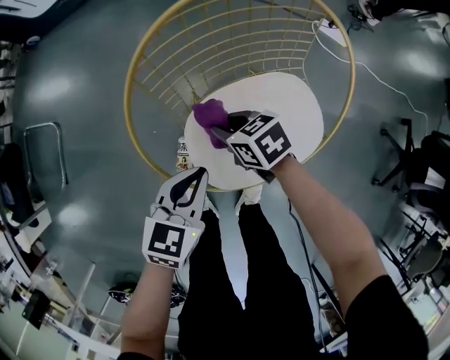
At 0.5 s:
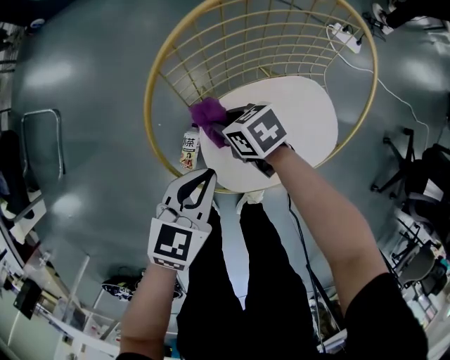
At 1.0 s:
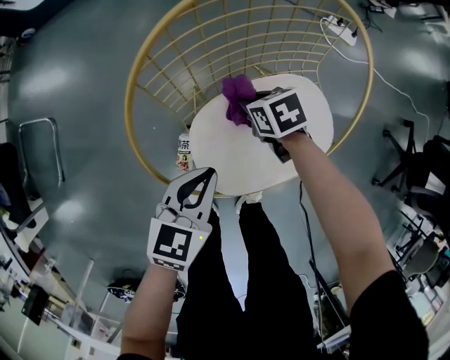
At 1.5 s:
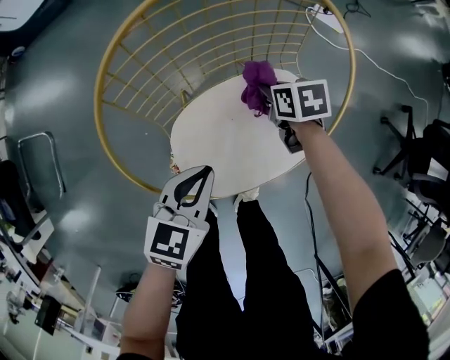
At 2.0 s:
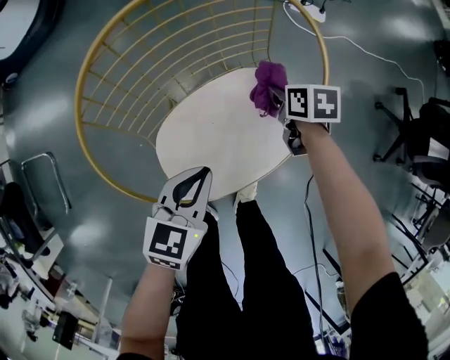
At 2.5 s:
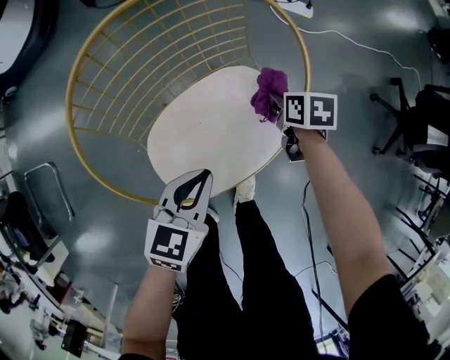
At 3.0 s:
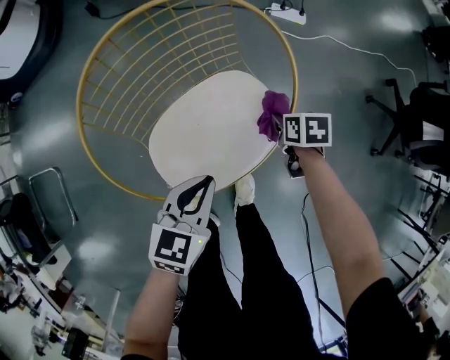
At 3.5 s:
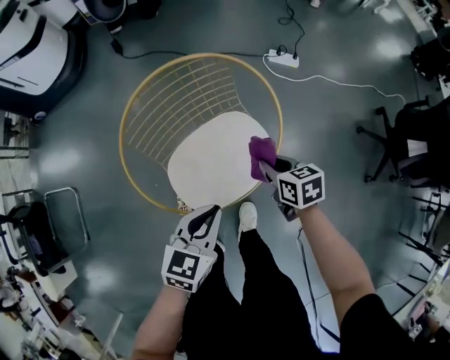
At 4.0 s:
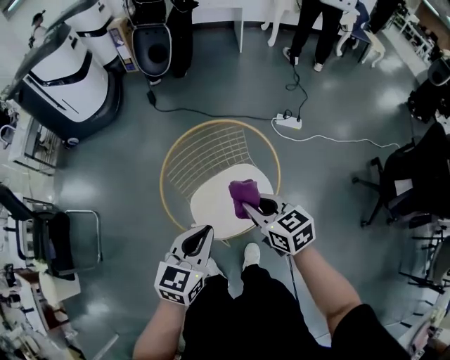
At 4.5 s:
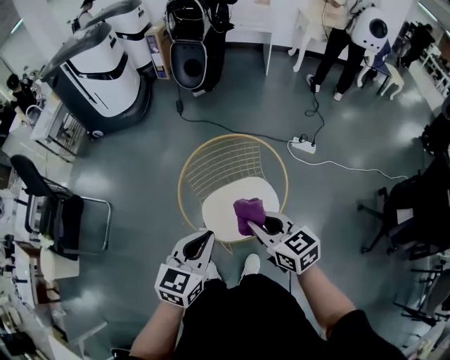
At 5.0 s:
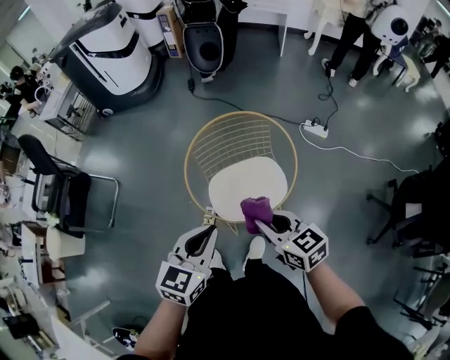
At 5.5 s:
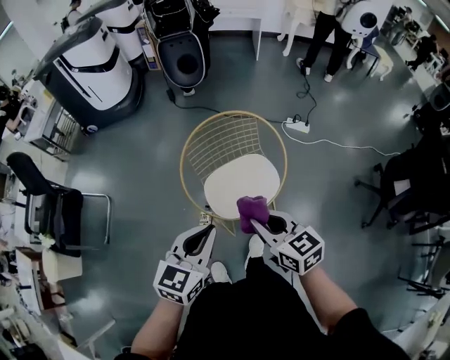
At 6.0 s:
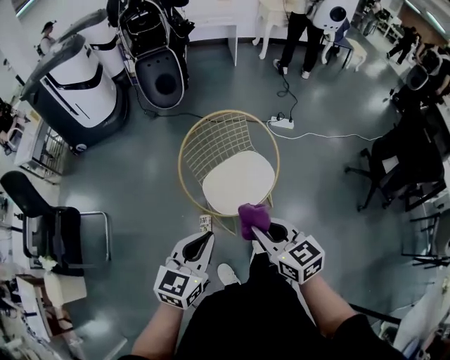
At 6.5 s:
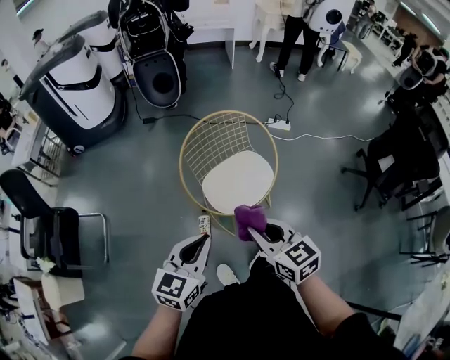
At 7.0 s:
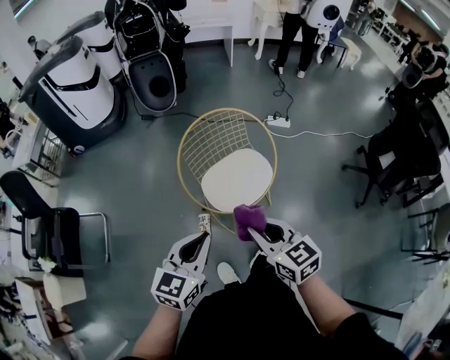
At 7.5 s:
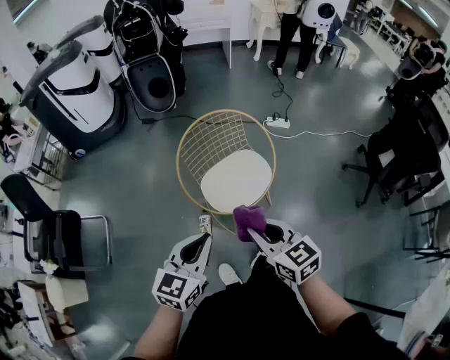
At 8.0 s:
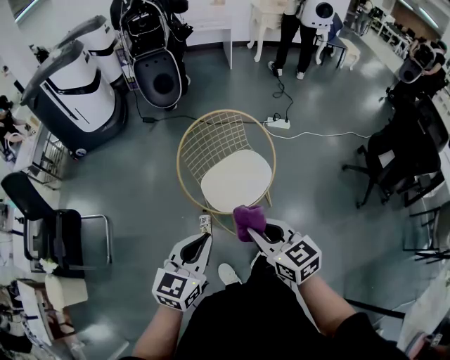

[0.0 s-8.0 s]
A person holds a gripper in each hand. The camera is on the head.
0.0 to 2.0 s: The right gripper shifts by approximately 25 cm, and rotates roughly 40 degrees, while the left gripper changes place by roughly 10 cm.
2.0 to 4.0 s: The left gripper travels upward by about 30 cm. Meanwhile the right gripper travels upward and backward by about 40 cm, and tips its fingers upward by roughly 30 degrees.
4.0 to 6.0 s: Both grippers travel together backward, to the left and upward, some 25 cm.
6.0 to 8.0 s: The grippers make only small movements.

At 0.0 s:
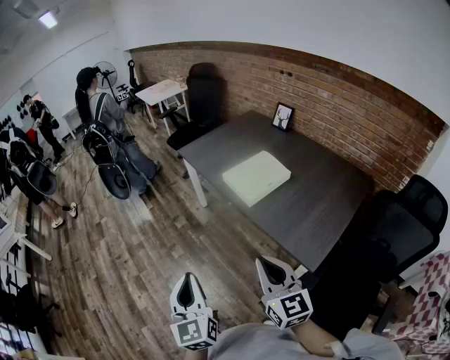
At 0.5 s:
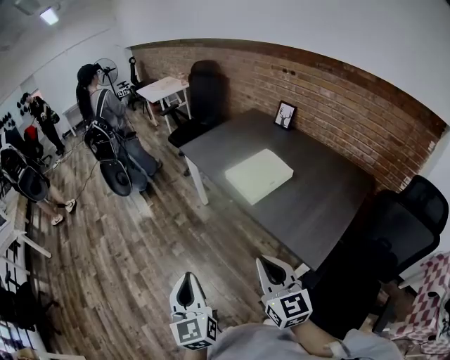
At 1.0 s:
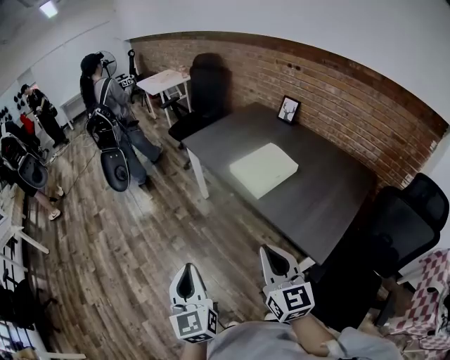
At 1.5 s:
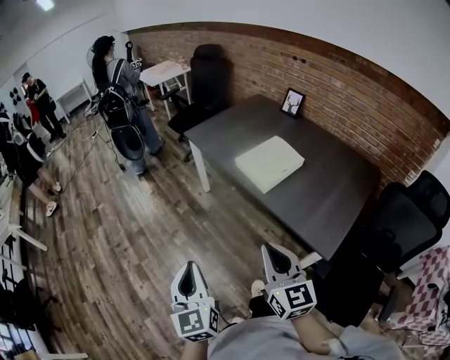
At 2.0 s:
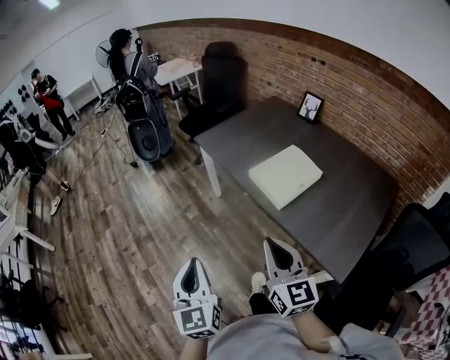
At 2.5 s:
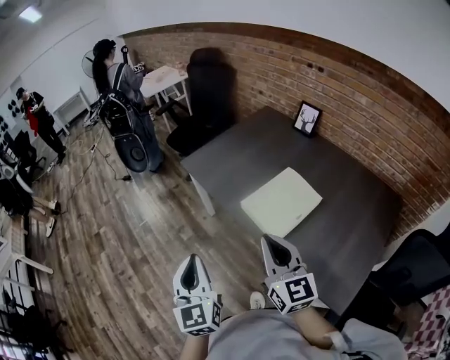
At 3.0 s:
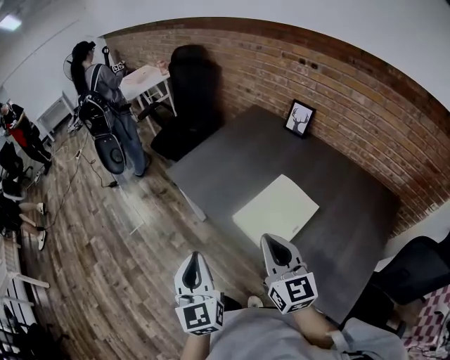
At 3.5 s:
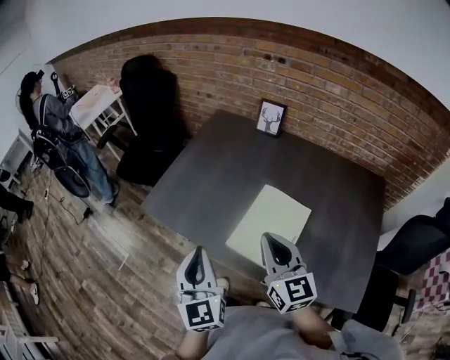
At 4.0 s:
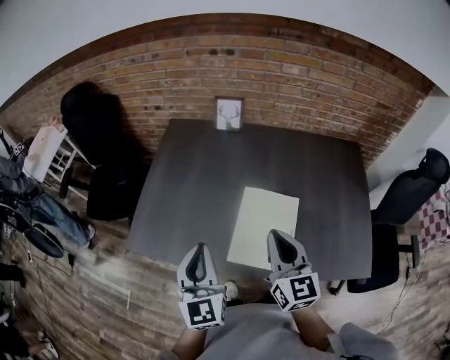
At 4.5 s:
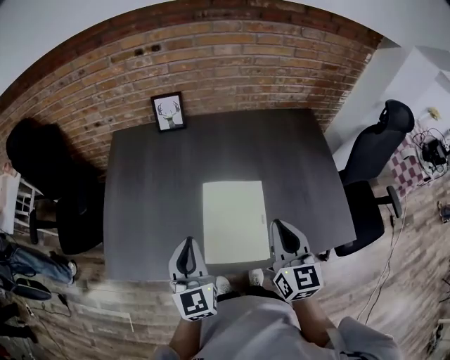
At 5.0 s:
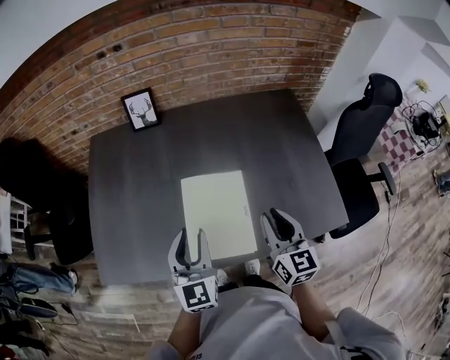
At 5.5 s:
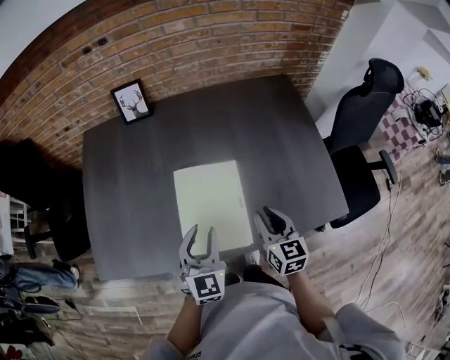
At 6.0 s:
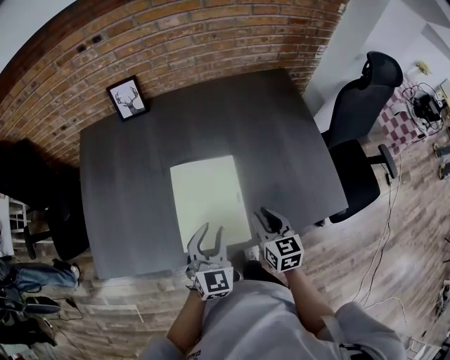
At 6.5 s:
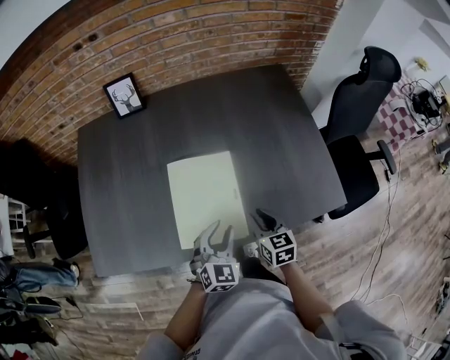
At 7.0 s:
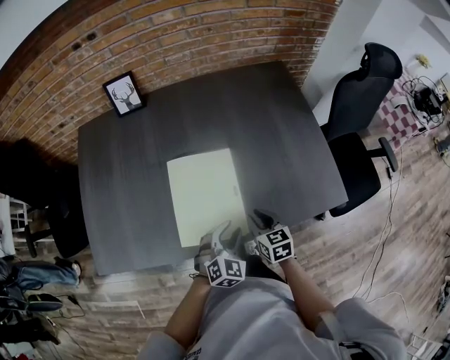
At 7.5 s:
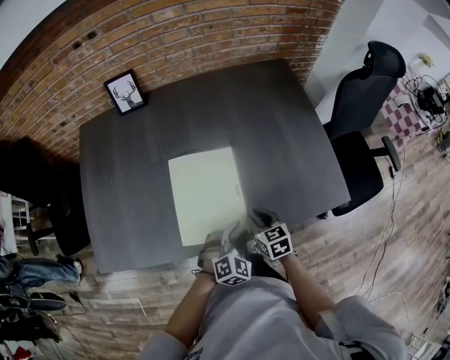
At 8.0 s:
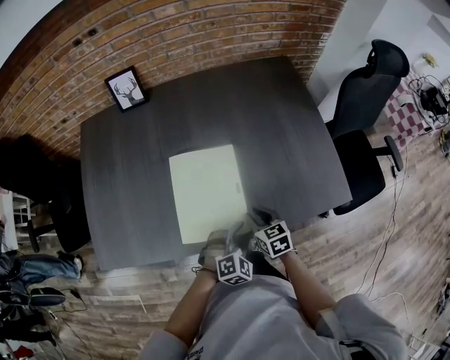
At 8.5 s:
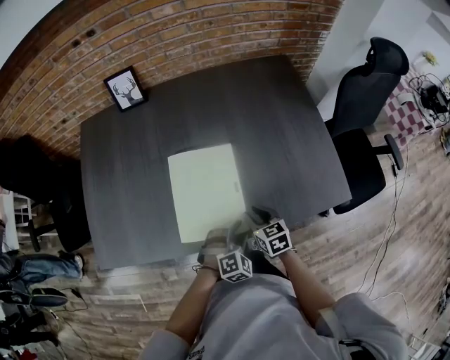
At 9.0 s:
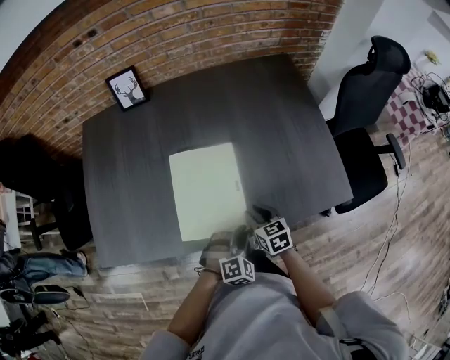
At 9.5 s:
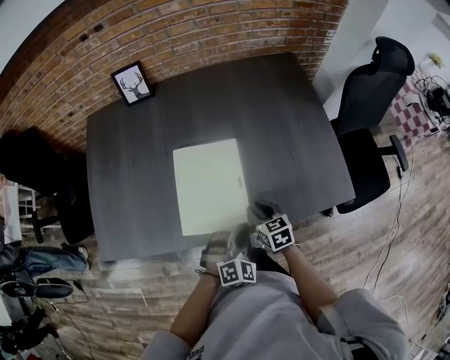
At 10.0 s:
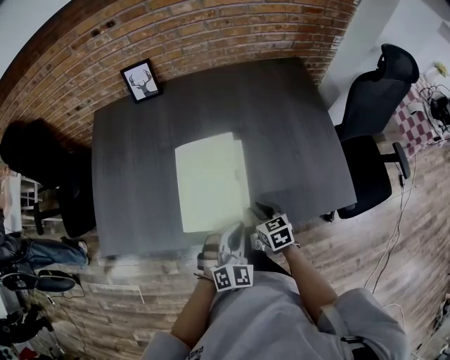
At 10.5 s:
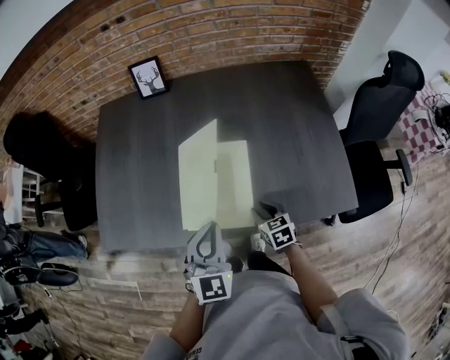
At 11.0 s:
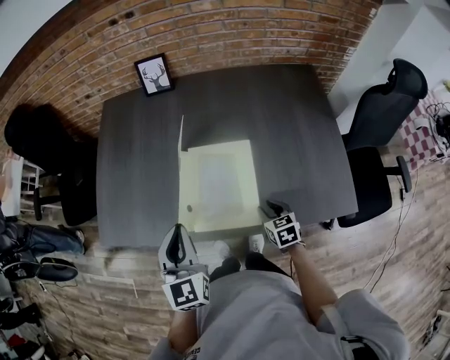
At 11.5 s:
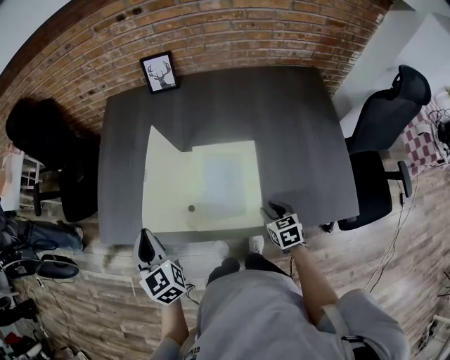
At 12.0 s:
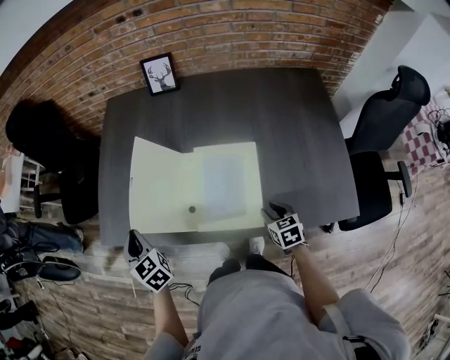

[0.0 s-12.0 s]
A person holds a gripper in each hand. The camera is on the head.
0.0 to 2.0 s: The left gripper is displaced forward and to the left by some 15 cm. Meanwhile the right gripper heads forward, covering about 15 cm.
2.0 to 4.0 s: The two grippers travel together, approximately 50 cm. The left gripper changes its angle by roughly 50 degrees, while the right gripper swivels some 50 degrees.
4.0 to 6.0 s: The right gripper goes approximately 25 cm downward and to the right, and swivels approximately 30 degrees. Meanwhile the left gripper is displaced to the right and downward by some 25 cm, swivels some 40 degrees, and opens up.
6.0 to 8.0 s: The left gripper heads downward, to the right and backward, covering about 15 cm, and turns by about 50 degrees. Meanwhile the right gripper goes roughly 10 cm downward.
8.0 to 10.0 s: The left gripper goes approximately 10 cm upward, swivels approximately 20 degrees, and closes.
10.0 to 12.0 s: The left gripper moves roughly 10 cm upward and comes back, and changes its angle by about 70 degrees.

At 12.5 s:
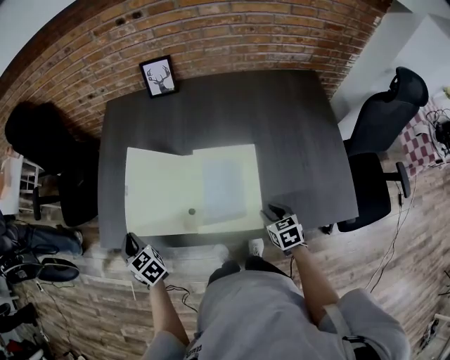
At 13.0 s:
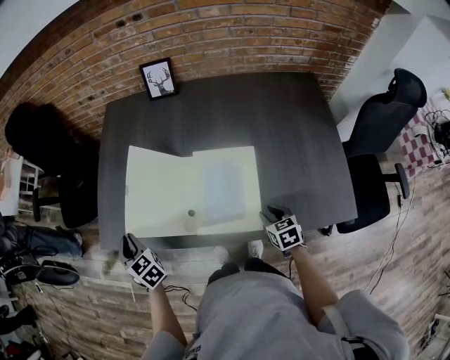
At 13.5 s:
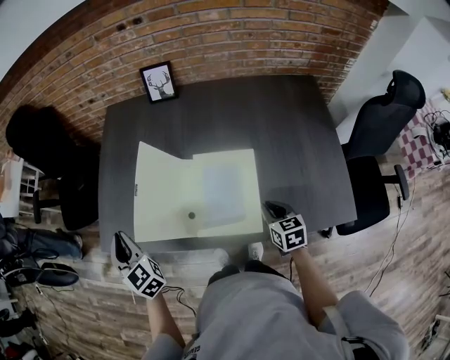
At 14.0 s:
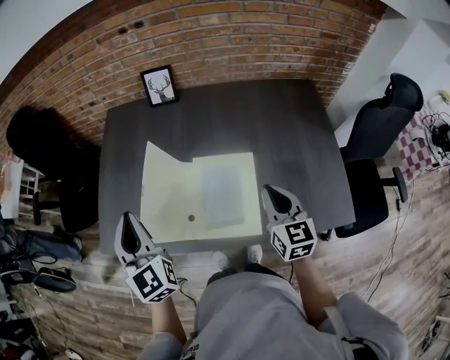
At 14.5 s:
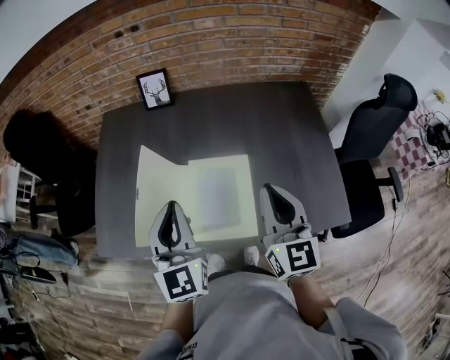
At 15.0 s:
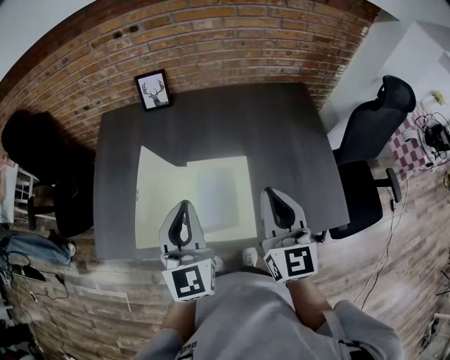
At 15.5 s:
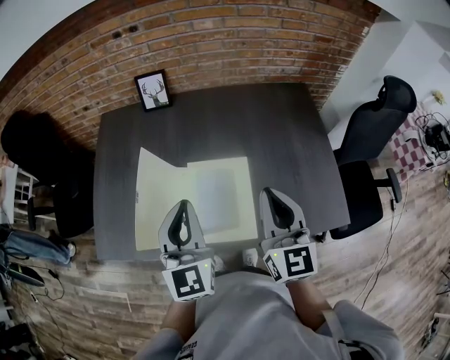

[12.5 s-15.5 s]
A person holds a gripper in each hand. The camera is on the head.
12.5 to 14.0 s: The right gripper is displaced upward by approximately 20 cm, angles its fingers upward, by approximately 30 degrees, and closes its fingers. Meanwhile the left gripper moves upward and to the right, roughly 25 cm, and turns by roughly 40 degrees.
14.0 to 15.5 s: The right gripper shifts approximately 10 cm upward, while the left gripper heads to the right, covering roughly 15 cm, and rotates approximately 20 degrees.

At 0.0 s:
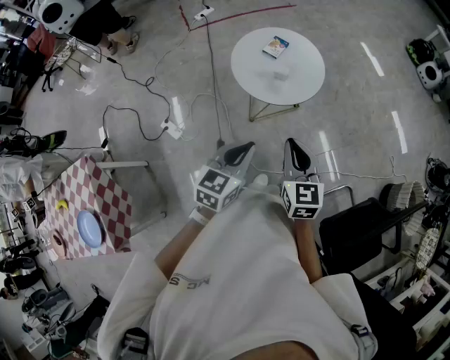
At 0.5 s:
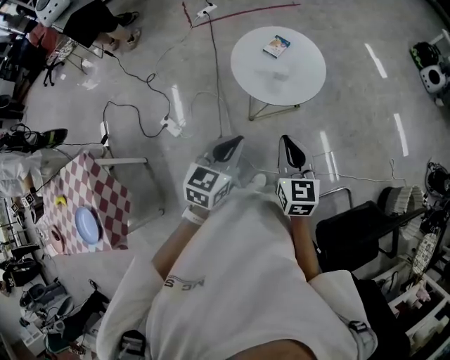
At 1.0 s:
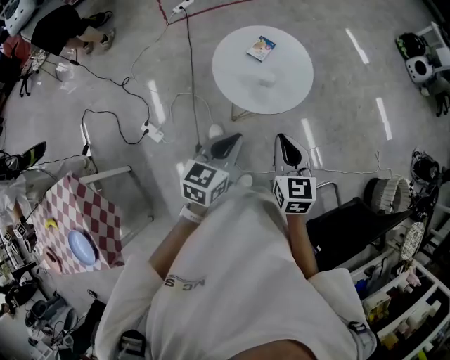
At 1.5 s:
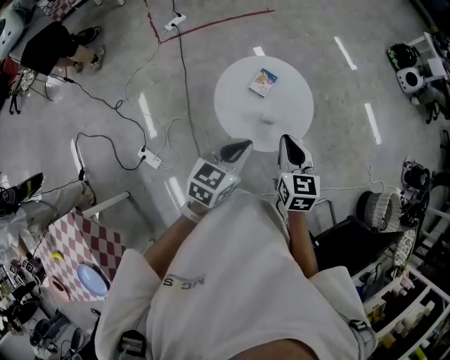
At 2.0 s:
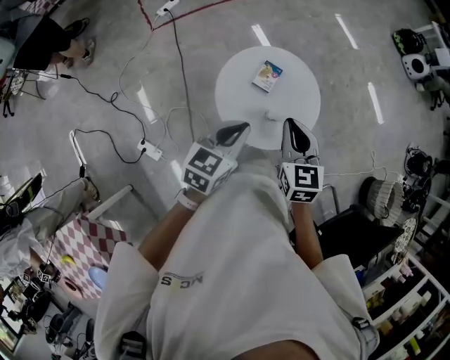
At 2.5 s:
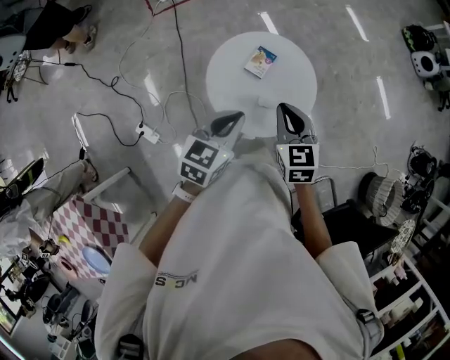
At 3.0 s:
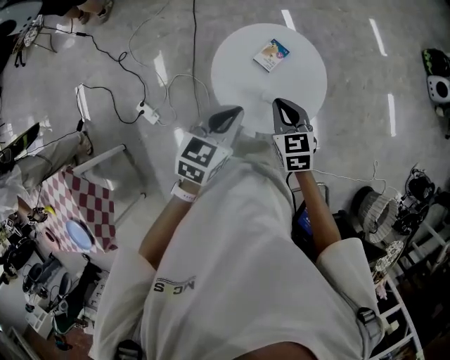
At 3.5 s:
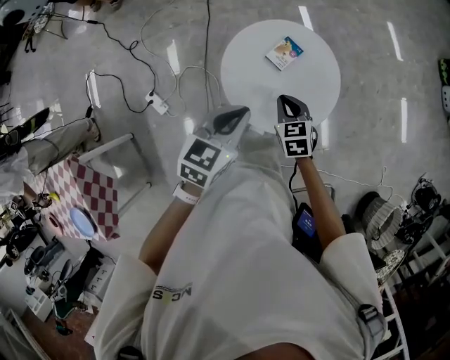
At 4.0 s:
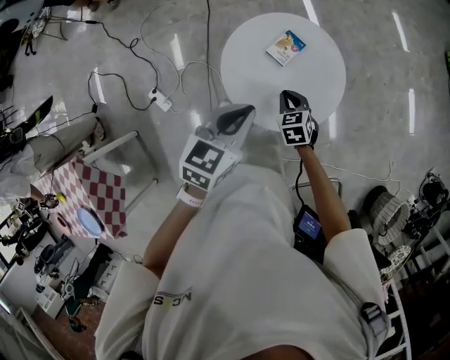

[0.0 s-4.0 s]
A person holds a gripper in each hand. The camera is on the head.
0.0 to 2.0 s: The two grippers travel together, forward, about 40 cm.
2.0 to 4.0 s: The right gripper goes some 30 cm downward, and rotates about 30 degrees. Meanwhile the left gripper shifts approximately 10 cm to the right and downward.
